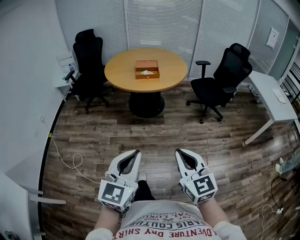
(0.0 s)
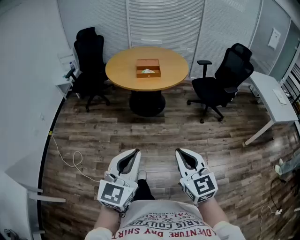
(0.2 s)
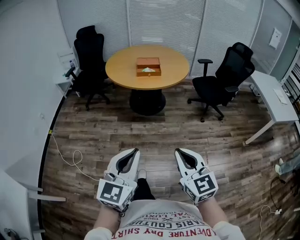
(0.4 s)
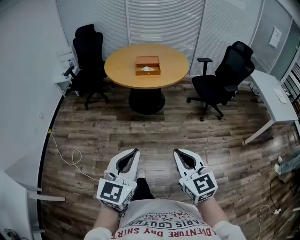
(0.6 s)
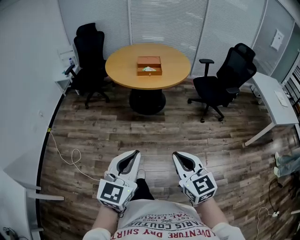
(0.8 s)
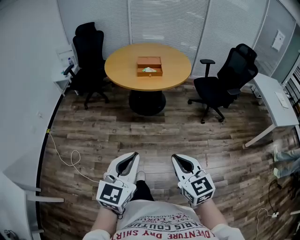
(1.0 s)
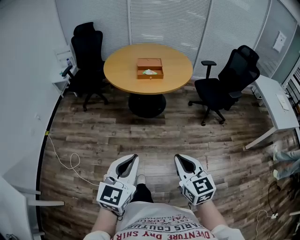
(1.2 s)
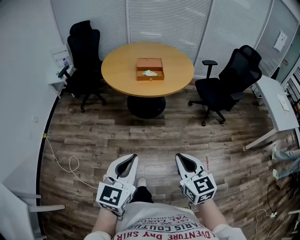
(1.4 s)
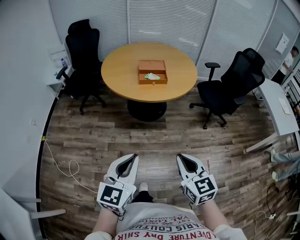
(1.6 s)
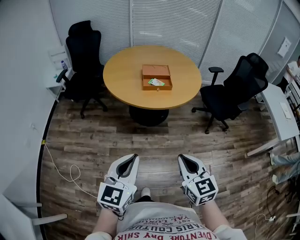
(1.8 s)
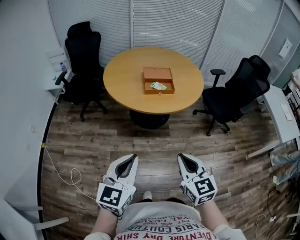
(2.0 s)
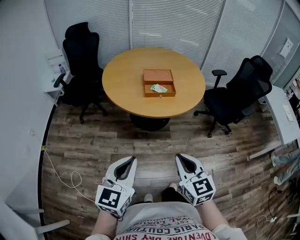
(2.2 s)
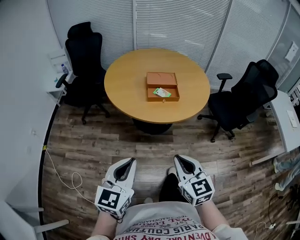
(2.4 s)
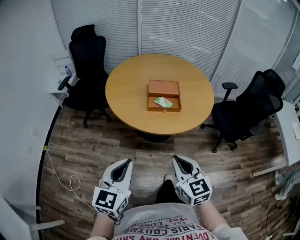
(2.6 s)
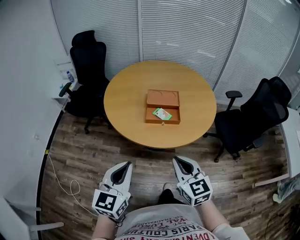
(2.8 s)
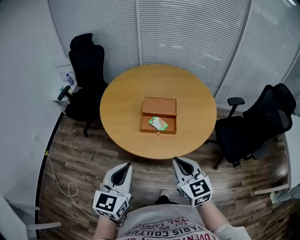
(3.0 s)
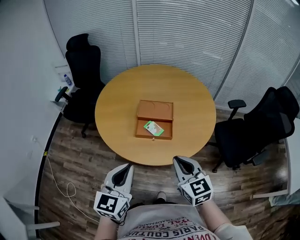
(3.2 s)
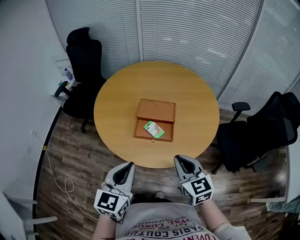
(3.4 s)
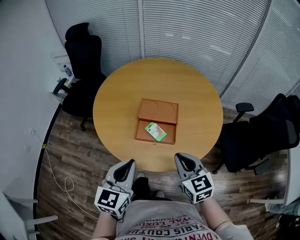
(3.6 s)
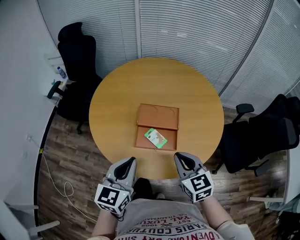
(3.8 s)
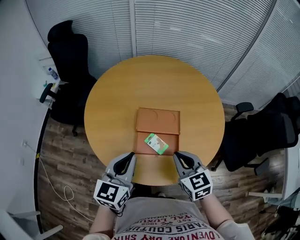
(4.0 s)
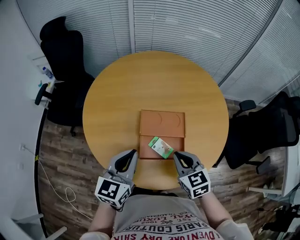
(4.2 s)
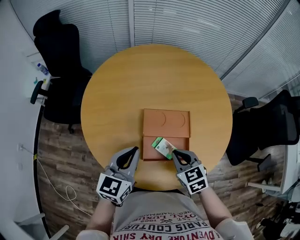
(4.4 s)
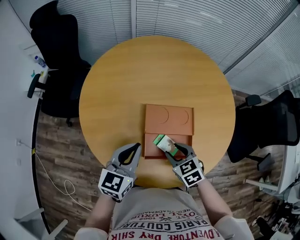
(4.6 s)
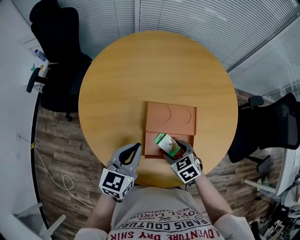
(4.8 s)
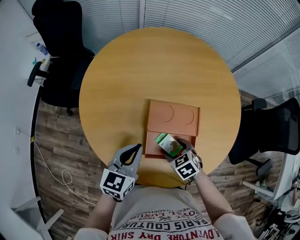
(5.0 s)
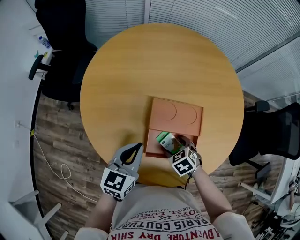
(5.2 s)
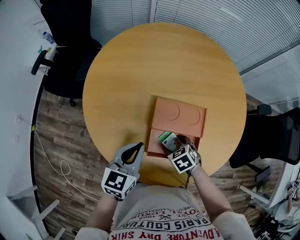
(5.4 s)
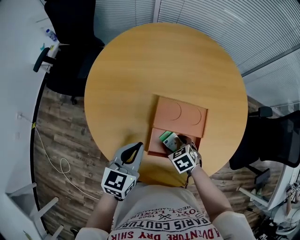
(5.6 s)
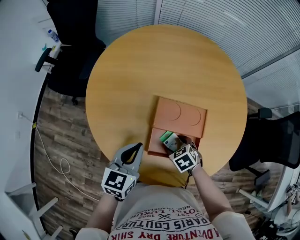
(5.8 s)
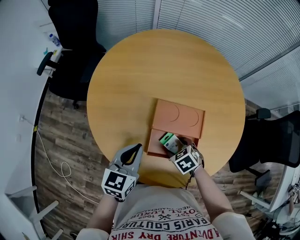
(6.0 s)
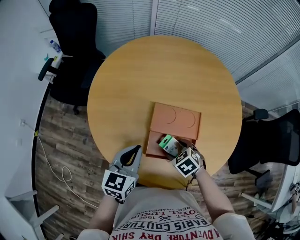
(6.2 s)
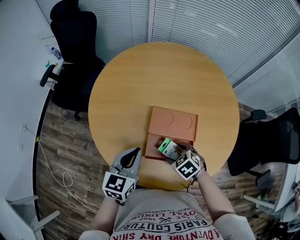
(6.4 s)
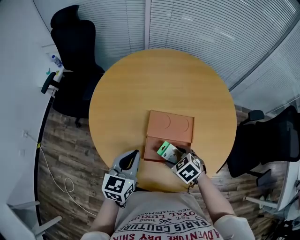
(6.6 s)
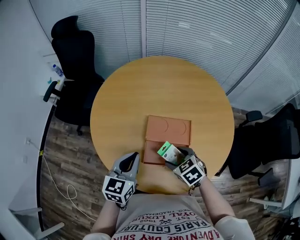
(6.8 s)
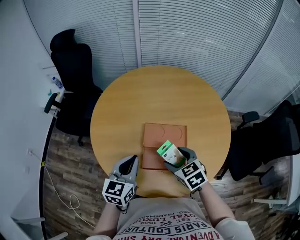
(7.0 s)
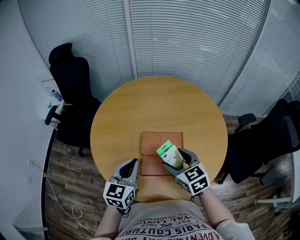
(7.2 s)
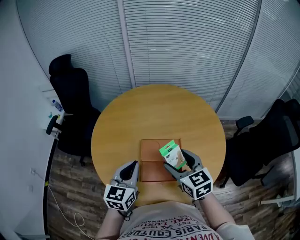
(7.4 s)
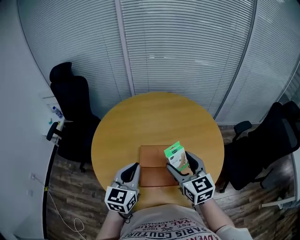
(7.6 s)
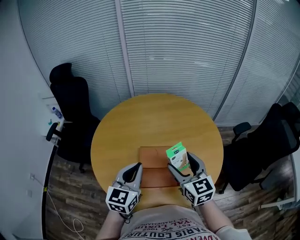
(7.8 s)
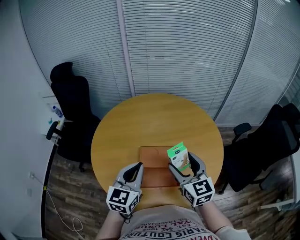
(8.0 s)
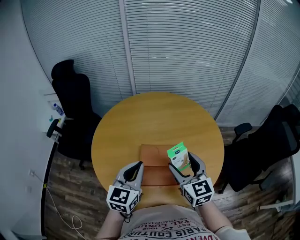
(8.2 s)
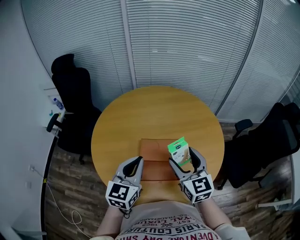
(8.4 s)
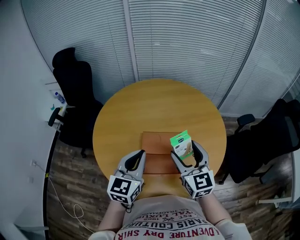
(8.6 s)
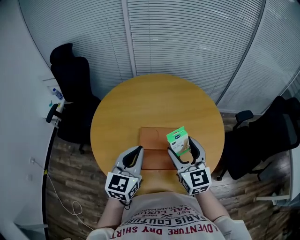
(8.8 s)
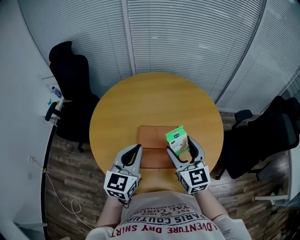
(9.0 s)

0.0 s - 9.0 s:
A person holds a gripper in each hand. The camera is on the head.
0.0 s - 1.6 s: Both grippers move forward, approximately 25 cm.
1.6 s - 3.0 s: The two grippers go some 40 cm forward.
3.0 s - 4.4 s: The left gripper heads forward, covering about 35 cm. The right gripper moves forward and downward, some 35 cm, and turns by about 30 degrees.
4.4 s - 6.0 s: The right gripper moves downward, approximately 15 cm, rotates some 30 degrees, and opens its fingers, while the left gripper heads downward, covering approximately 5 cm.
6.0 s - 7.6 s: The right gripper travels upward by some 30 cm, and angles its fingers upward, by approximately 50 degrees. Meanwhile the left gripper is displaced upward and to the right by some 15 cm.
7.6 s - 9.0 s: The grippers stay close to where they were, moving slightly.

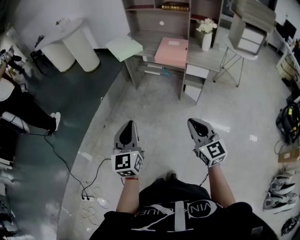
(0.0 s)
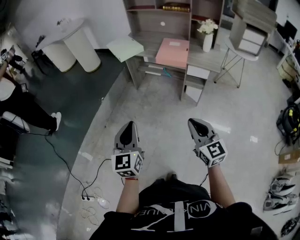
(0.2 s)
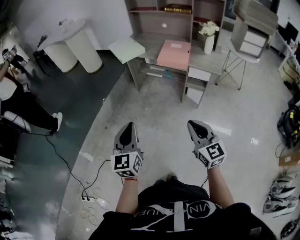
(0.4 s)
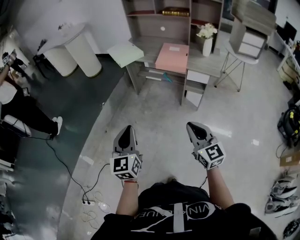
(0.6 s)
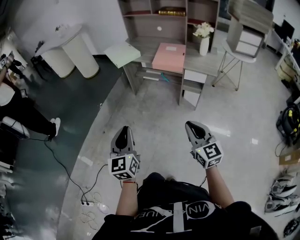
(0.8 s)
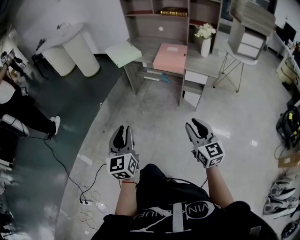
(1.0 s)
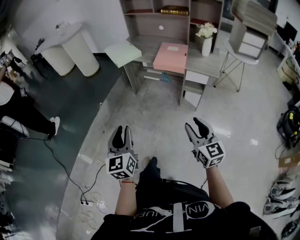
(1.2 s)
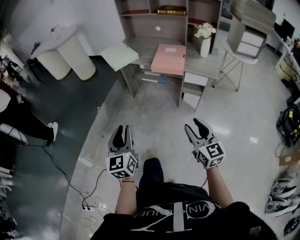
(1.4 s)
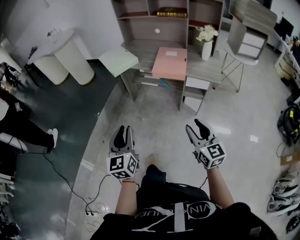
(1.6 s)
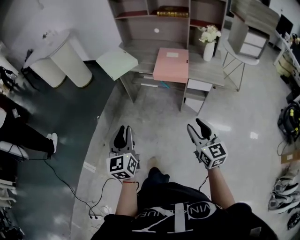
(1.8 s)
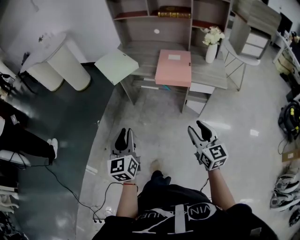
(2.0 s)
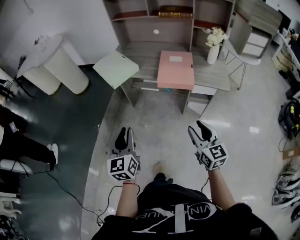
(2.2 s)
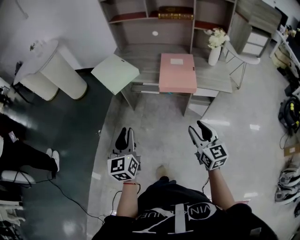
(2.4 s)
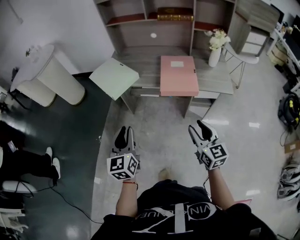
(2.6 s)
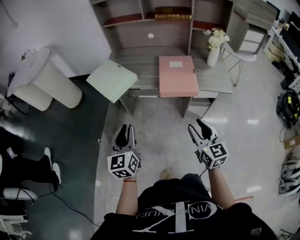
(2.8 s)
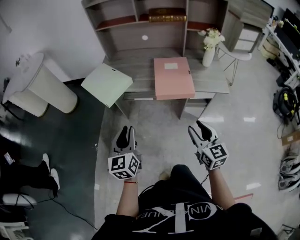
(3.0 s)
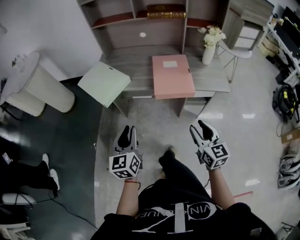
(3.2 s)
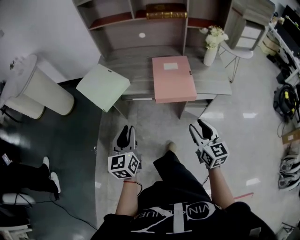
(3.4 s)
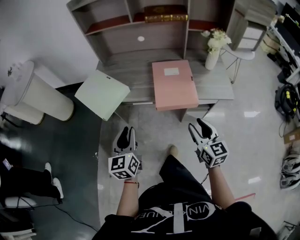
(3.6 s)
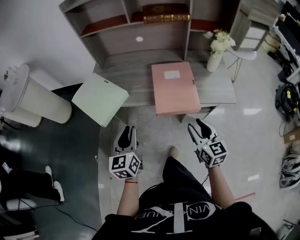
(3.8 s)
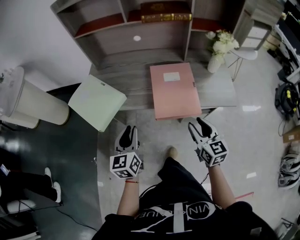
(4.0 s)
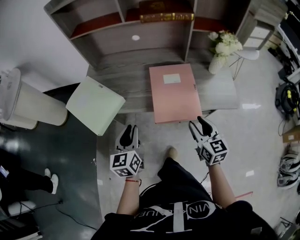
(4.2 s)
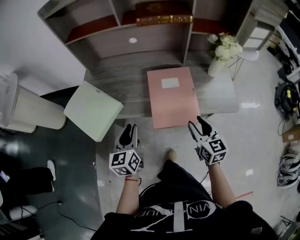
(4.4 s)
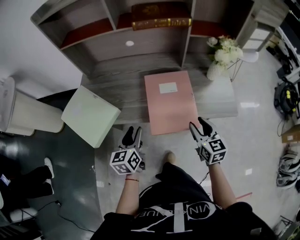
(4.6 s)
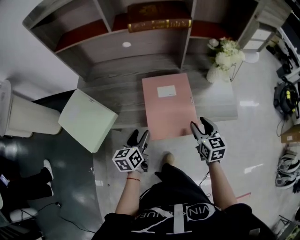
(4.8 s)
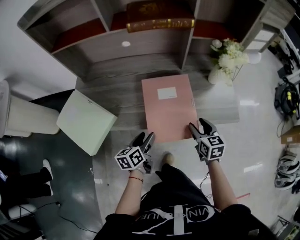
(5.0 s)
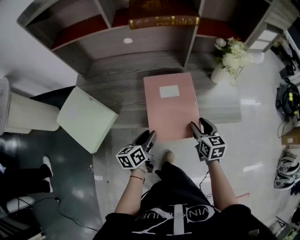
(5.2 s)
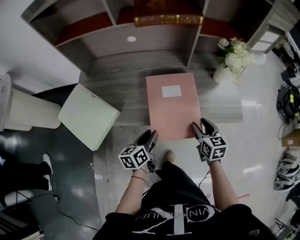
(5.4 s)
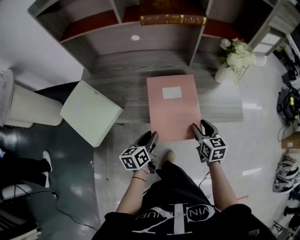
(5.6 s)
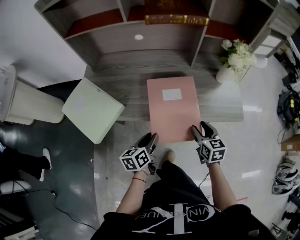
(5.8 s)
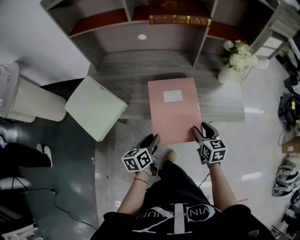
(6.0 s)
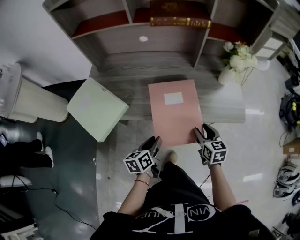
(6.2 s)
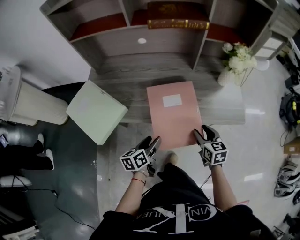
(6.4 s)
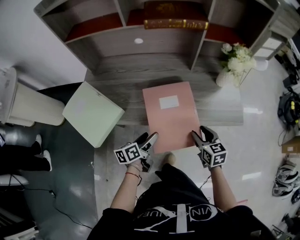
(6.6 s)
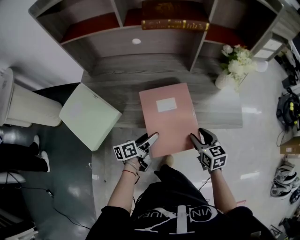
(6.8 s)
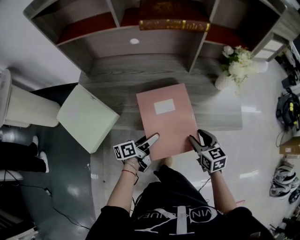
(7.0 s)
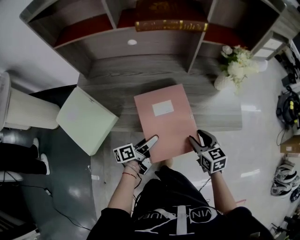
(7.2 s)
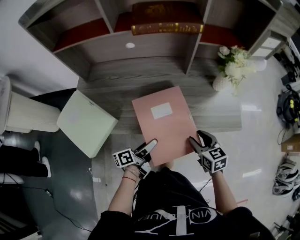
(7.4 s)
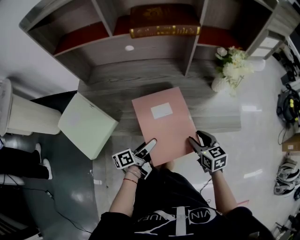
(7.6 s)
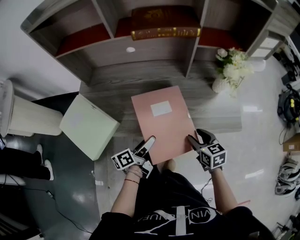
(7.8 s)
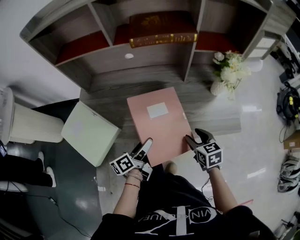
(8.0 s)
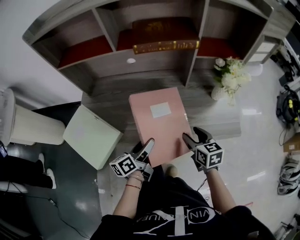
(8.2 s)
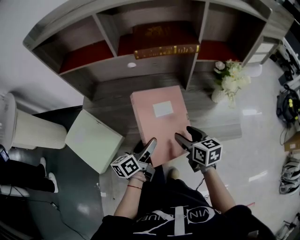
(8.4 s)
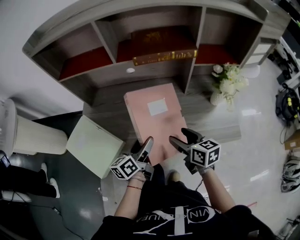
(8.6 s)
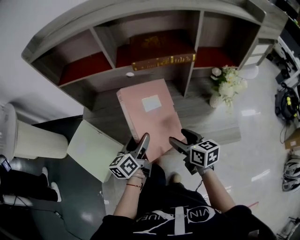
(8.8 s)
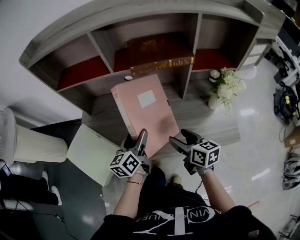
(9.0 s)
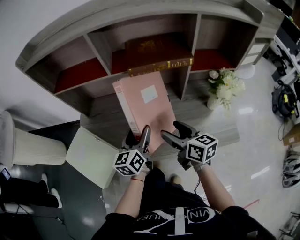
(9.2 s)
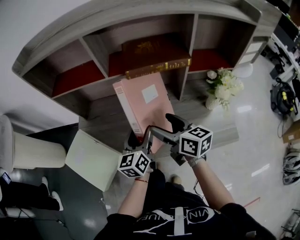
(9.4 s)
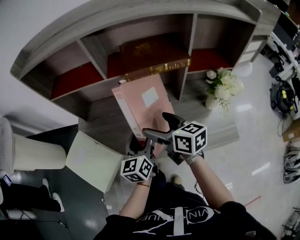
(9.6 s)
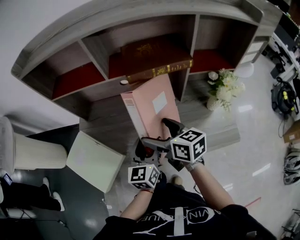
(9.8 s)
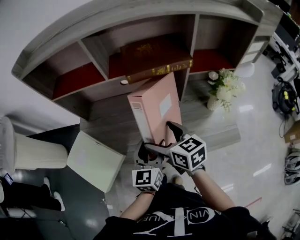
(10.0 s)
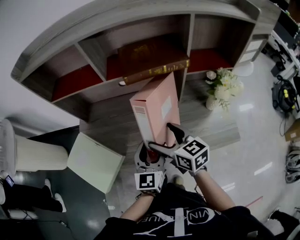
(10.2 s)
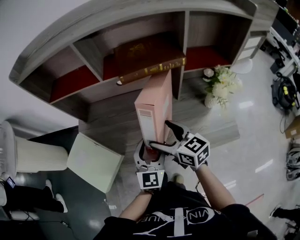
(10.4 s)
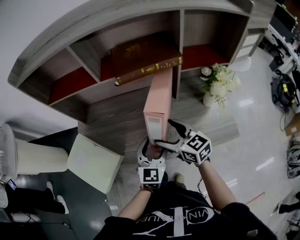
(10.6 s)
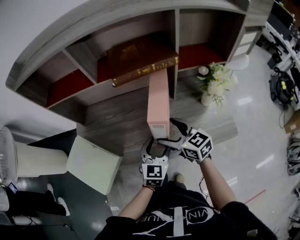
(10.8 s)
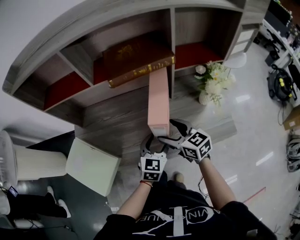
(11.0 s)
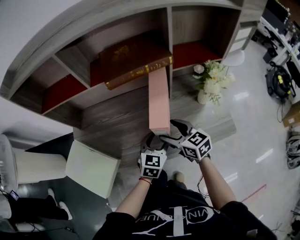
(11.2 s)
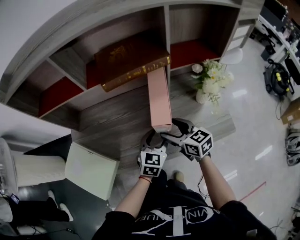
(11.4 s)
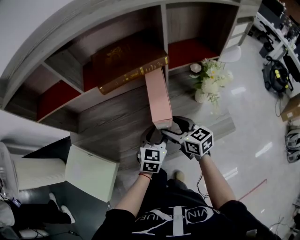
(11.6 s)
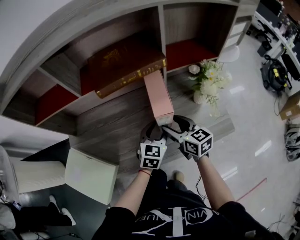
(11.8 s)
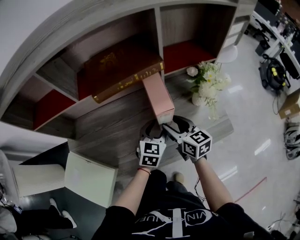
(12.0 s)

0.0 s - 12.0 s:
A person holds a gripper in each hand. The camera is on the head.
0.0 s - 1.6 s: The two grippers go roughly 15 cm forward.
1.6 s - 3.0 s: Both grippers travel together forward, about 25 cm.
3.0 s - 4.4 s: Both grippers move forward, some 25 cm.
4.4 s - 6.0 s: The right gripper shifts about 10 cm downward. The left gripper moves downward and to the right, roughly 15 cm, and rotates approximately 30 degrees.
6.0 s - 7.6 s: The left gripper moves forward, about 5 cm, rotates some 30 degrees, and opens up.
7.6 s - 9.0 s: The left gripper travels forward and upward by approximately 20 cm, and changes its angle by roughly 40 degrees. The right gripper is displaced upward, forward and to the left by approximately 15 cm, and rotates approximately 20 degrees.
9.0 s - 10.4 s: The right gripper goes some 5 cm upward, and rotates roughly 20 degrees. Meanwhile the left gripper travels to the right and backward by some 10 cm, and rotates around the line of its fingers by roughly 40 degrees, clockwise from behind.
10.4 s - 12.0 s: The right gripper moves to the right, downward and forward, about 15 cm, rotates about 20 degrees, and closes up. The left gripper is displaced to the right, forward and downward by approximately 15 cm, and swivels approximately 30 degrees.

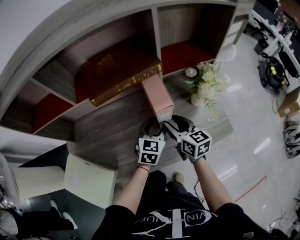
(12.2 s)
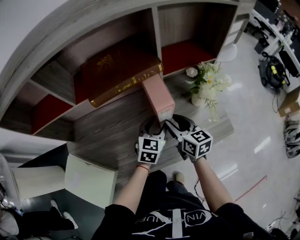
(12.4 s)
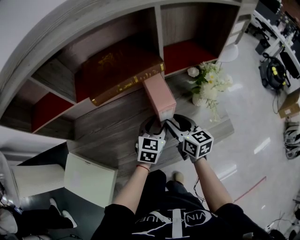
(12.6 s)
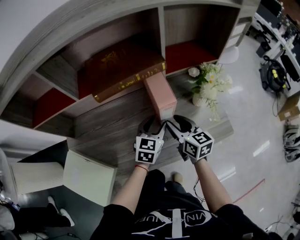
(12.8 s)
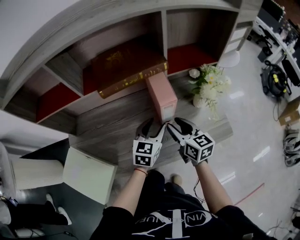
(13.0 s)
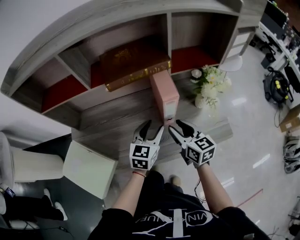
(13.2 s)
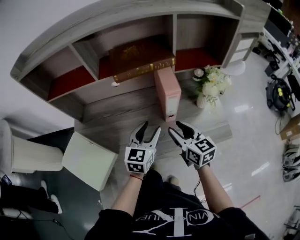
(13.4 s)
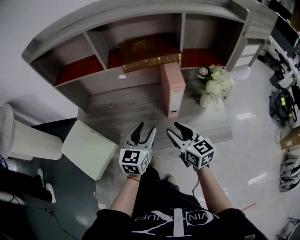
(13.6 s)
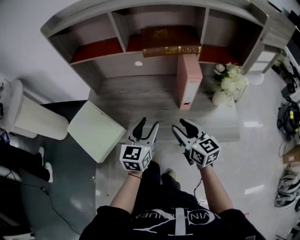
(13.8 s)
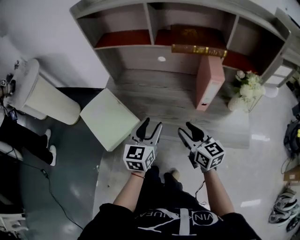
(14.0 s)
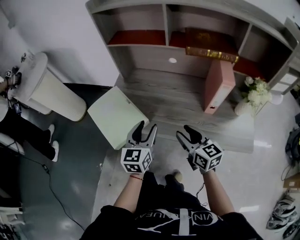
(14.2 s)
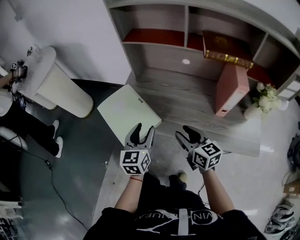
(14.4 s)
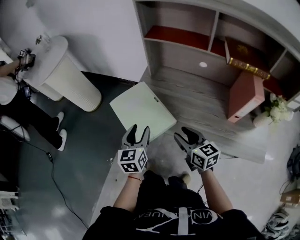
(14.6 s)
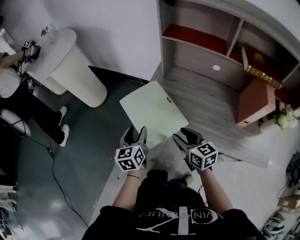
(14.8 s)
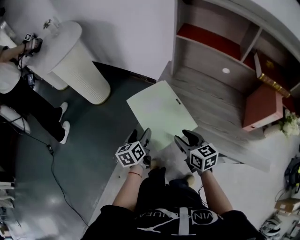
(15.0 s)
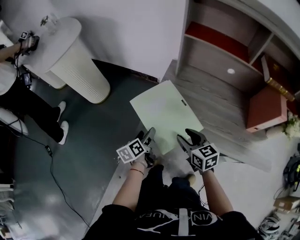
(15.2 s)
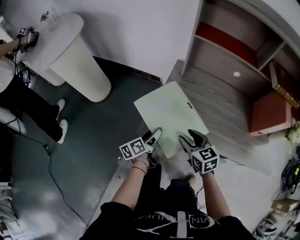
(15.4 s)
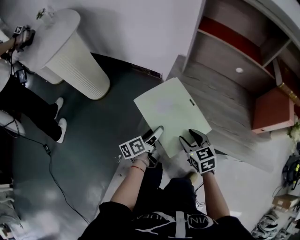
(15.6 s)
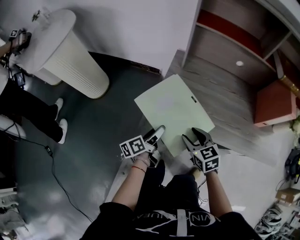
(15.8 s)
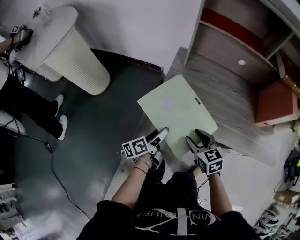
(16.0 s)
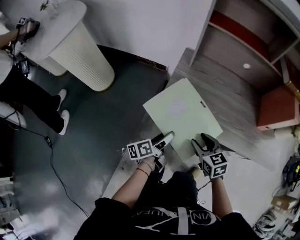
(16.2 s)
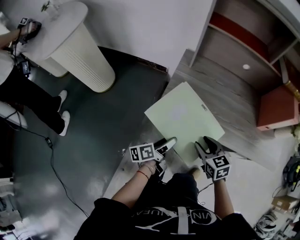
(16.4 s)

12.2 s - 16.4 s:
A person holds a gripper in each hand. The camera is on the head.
12.2 s - 13.6 s: The right gripper is displaced backward and upward by roughly 15 cm, while the left gripper heads backward, to the left and upward, covering roughly 20 cm, and changes its angle by some 30 degrees.
13.6 s - 15.0 s: The right gripper shifts by about 40 cm, and changes its angle by about 30 degrees. The left gripper shifts by about 50 cm, and turns by some 50 degrees.
15.0 s - 16.4 s: The left gripper moves downward and to the right, approximately 10 cm, and rotates approximately 40 degrees; the right gripper goes some 5 cm downward.
